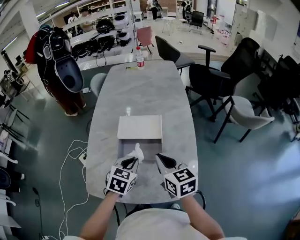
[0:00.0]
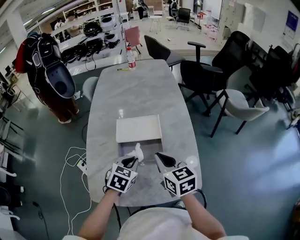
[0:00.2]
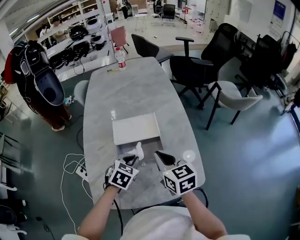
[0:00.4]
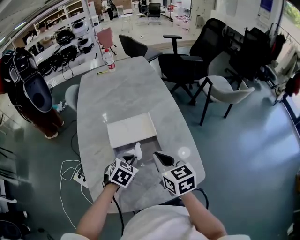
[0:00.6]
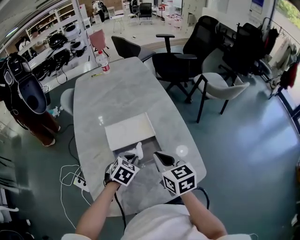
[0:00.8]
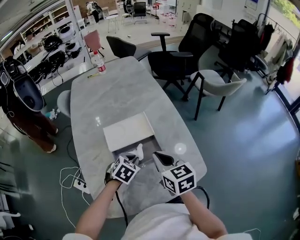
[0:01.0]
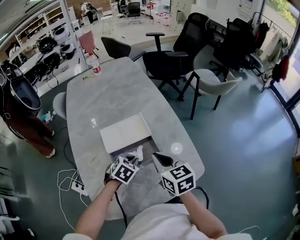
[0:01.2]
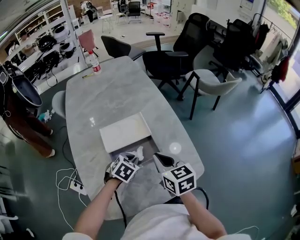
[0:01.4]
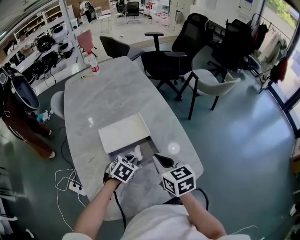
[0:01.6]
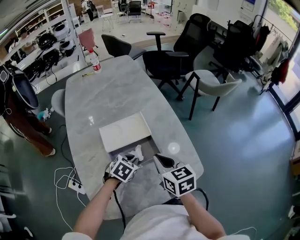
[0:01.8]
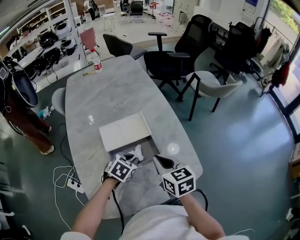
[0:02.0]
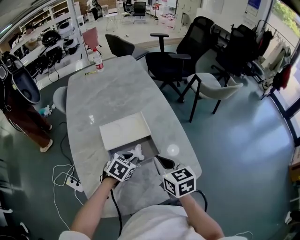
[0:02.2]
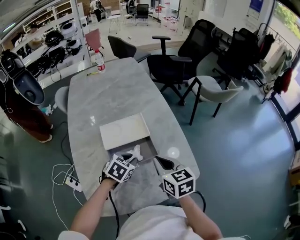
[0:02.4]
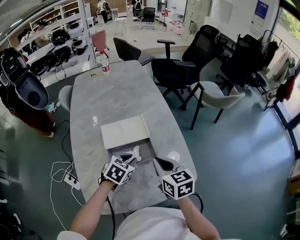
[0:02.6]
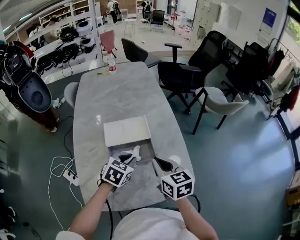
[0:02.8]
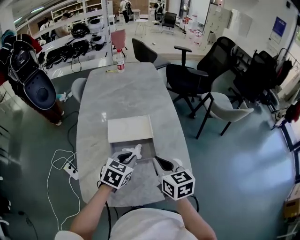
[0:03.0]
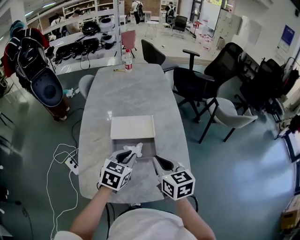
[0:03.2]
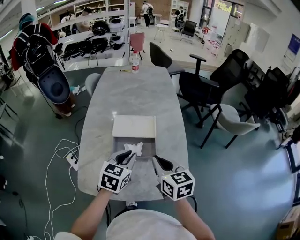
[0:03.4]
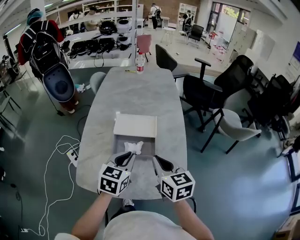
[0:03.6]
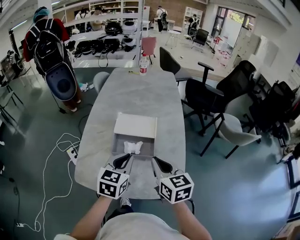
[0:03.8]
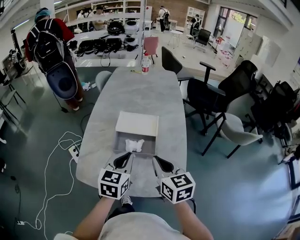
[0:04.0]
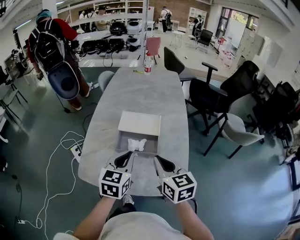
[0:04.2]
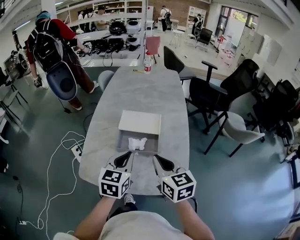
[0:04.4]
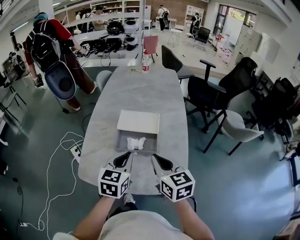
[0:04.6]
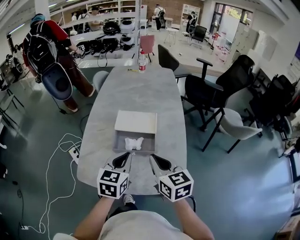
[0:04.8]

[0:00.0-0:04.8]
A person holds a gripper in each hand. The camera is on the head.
0:00.0 to 0:01.6: The right gripper changes its angle by roughly 20 degrees. Meanwhile the left gripper moves downward, about 10 cm, and rotates about 40 degrees.
0:01.6 to 0:03.2: The right gripper moves about 5 cm. The left gripper shifts approximately 15 cm upward, and swivels roughly 40 degrees.
0:03.2 to 0:04.8: The left gripper heads backward, covering roughly 5 cm, and turns by about 20 degrees. Meanwhile the right gripper moves roughly 5 cm.

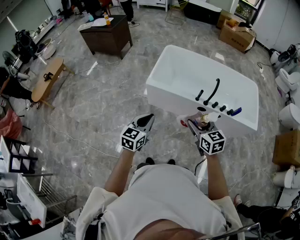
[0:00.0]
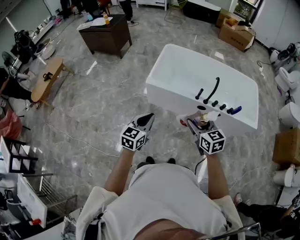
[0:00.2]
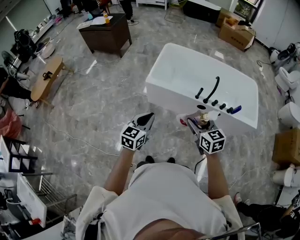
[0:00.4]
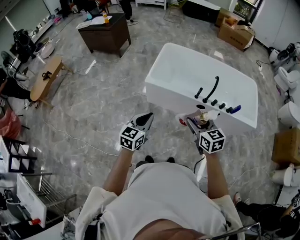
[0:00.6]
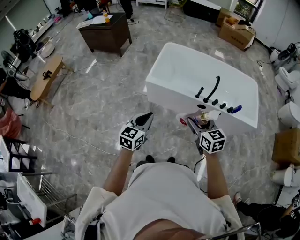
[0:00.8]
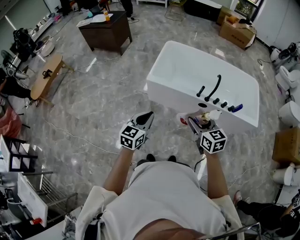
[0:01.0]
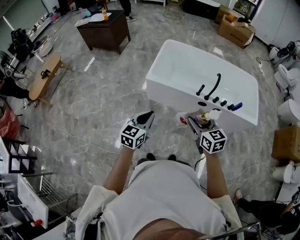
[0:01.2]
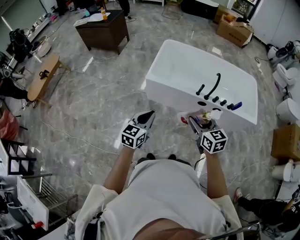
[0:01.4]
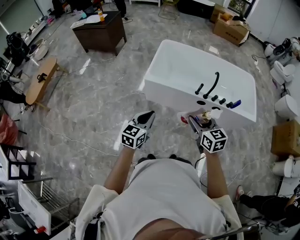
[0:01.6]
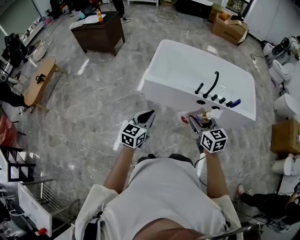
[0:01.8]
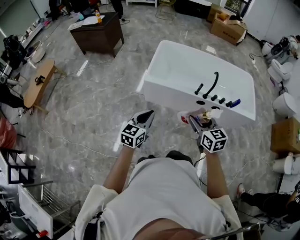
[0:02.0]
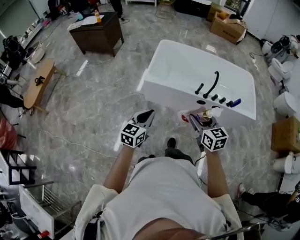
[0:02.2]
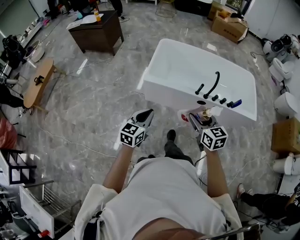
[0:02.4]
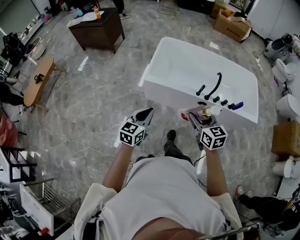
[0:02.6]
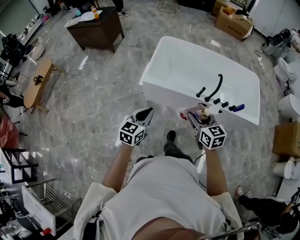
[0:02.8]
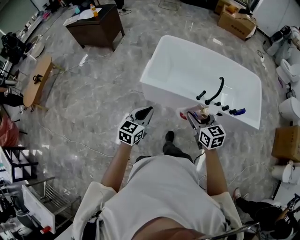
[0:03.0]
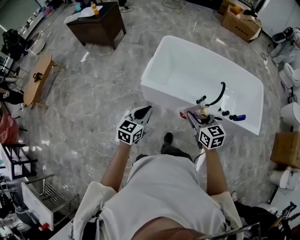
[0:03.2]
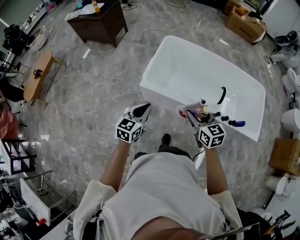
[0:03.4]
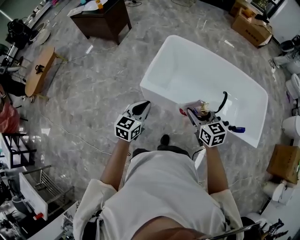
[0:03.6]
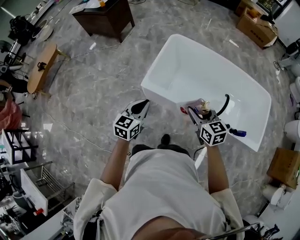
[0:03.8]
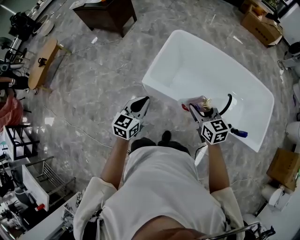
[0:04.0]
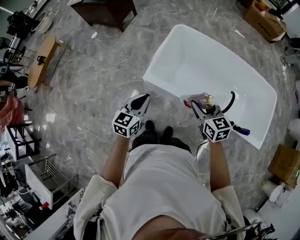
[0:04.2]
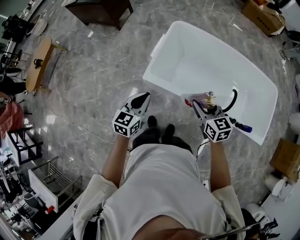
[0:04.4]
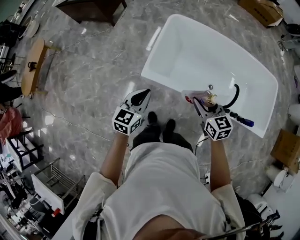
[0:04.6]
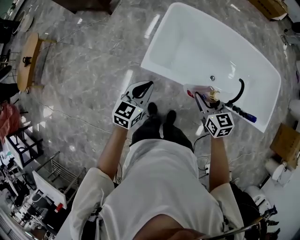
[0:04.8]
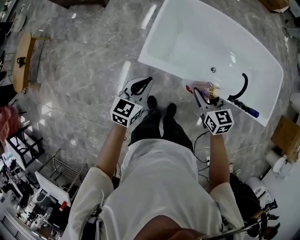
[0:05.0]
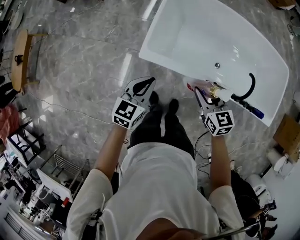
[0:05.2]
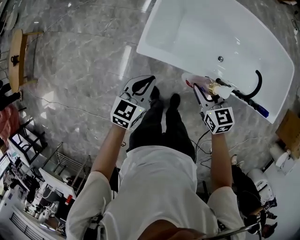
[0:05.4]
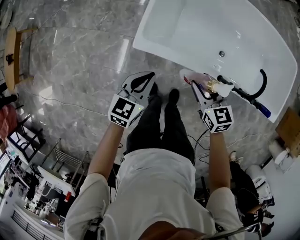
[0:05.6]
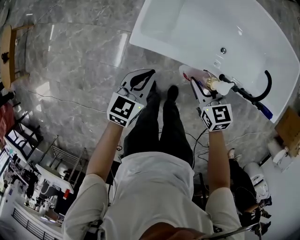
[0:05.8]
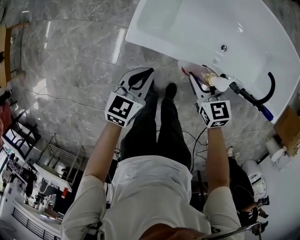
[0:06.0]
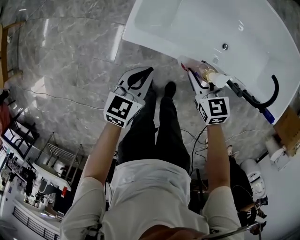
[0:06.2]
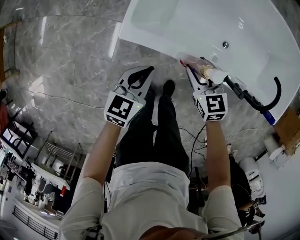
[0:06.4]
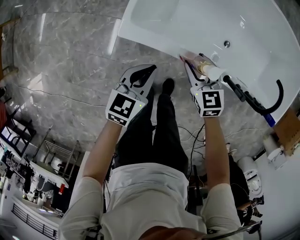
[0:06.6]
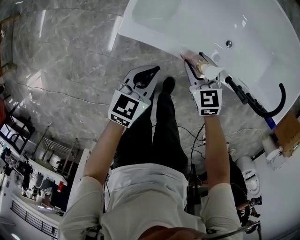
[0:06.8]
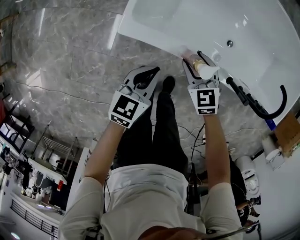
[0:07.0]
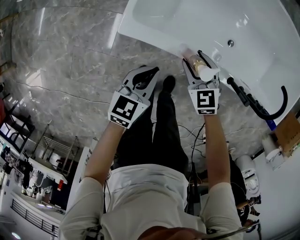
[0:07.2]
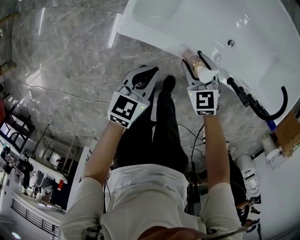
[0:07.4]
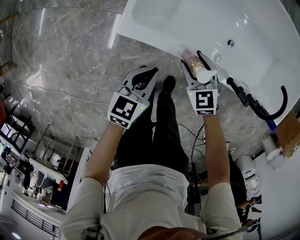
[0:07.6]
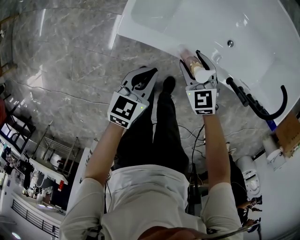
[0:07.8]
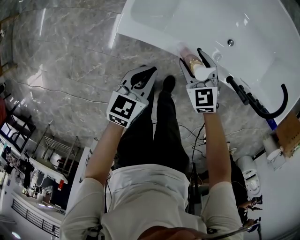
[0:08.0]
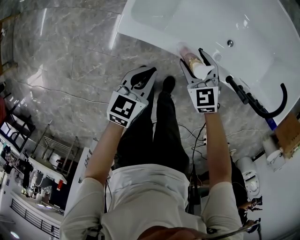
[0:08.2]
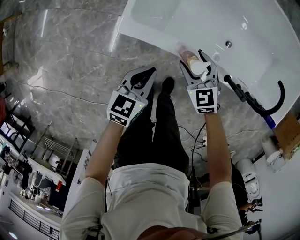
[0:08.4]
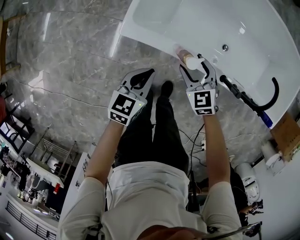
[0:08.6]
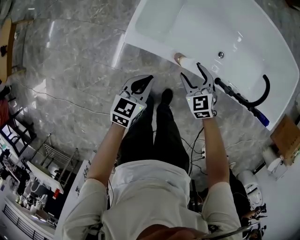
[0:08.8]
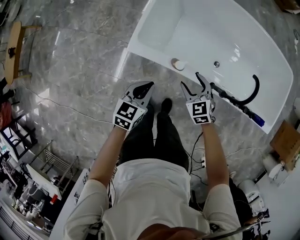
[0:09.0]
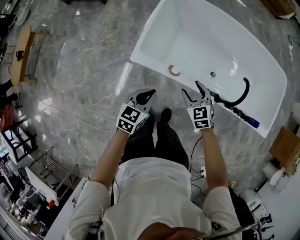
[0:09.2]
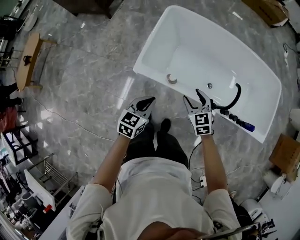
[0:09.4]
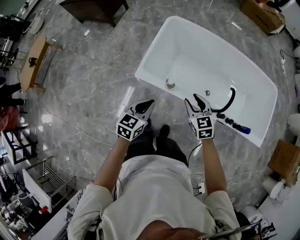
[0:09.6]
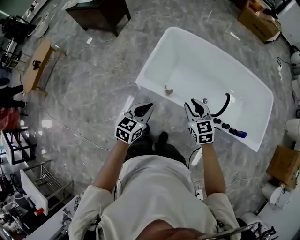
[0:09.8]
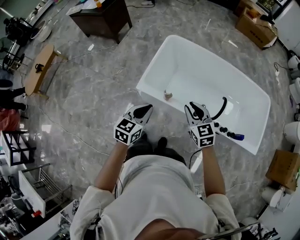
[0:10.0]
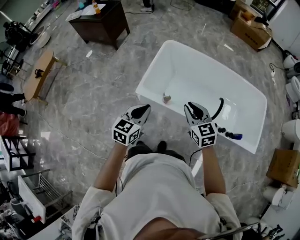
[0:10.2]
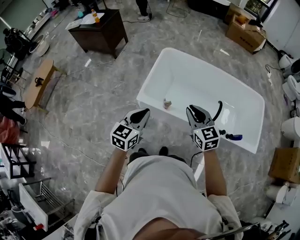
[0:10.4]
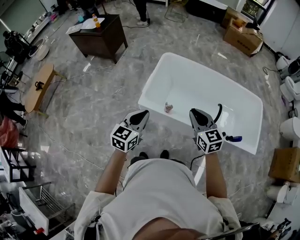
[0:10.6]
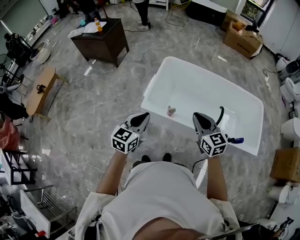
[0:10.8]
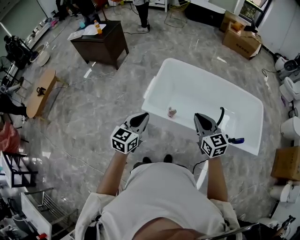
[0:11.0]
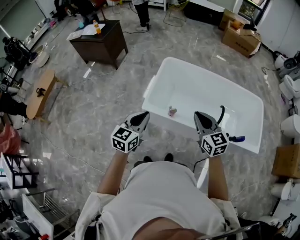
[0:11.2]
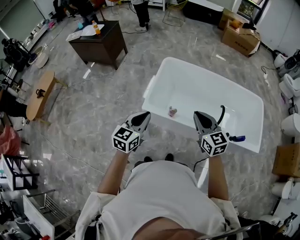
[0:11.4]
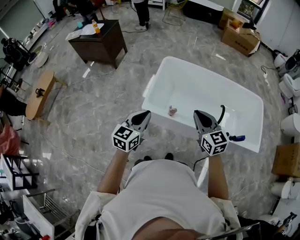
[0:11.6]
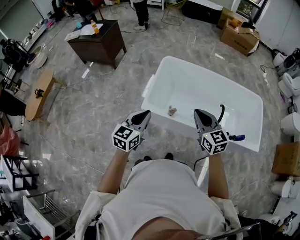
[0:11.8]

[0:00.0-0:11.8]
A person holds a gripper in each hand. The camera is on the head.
0:00.0 to 0:01.4: There are only small adjustments of the grippers.
0:01.4 to 0:03.0: Both grippers move forward, about 20 cm.
0:03.0 to 0:04.4: Both grippers move forward, about 25 cm.
0:04.4 to 0:06.0: The left gripper is displaced downward and forward by roughly 35 cm. The right gripper is displaced downward by some 30 cm.
0:06.0 to 0:07.4: Both grippers travel together downward, some 10 cm.
0:07.4 to 0:08.8: The left gripper goes approximately 10 cm upward, while the right gripper heads upward and backward, covering some 10 cm.
0:08.8 to 0:10.4: The two grippers go approximately 40 cm upward. The right gripper swivels about 30 degrees, and closes. Meanwhile the left gripper turns by some 20 degrees.
0:10.4 to 0:11.8: The right gripper is displaced upward by approximately 5 cm, while the left gripper is displaced to the left by approximately 5 cm.

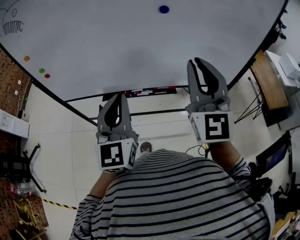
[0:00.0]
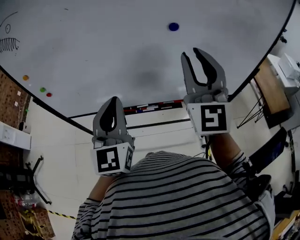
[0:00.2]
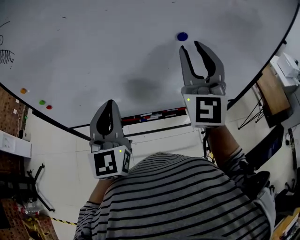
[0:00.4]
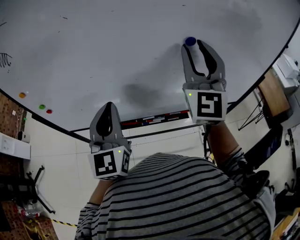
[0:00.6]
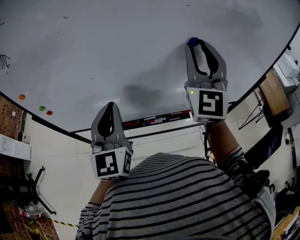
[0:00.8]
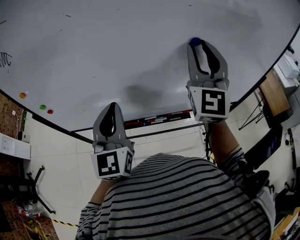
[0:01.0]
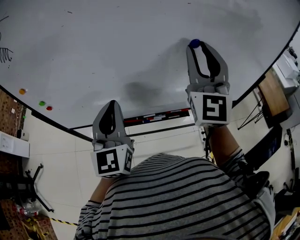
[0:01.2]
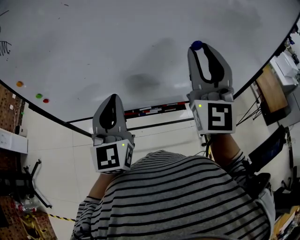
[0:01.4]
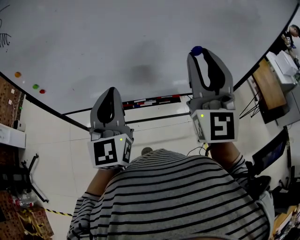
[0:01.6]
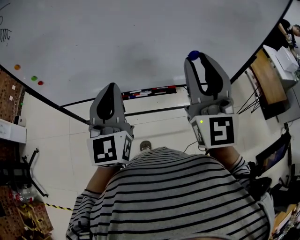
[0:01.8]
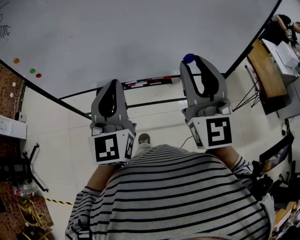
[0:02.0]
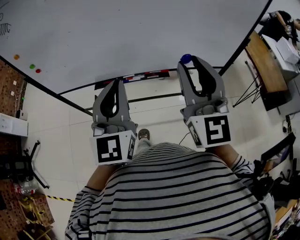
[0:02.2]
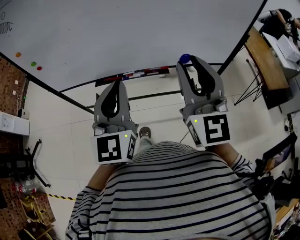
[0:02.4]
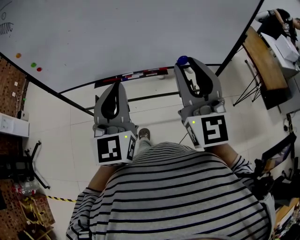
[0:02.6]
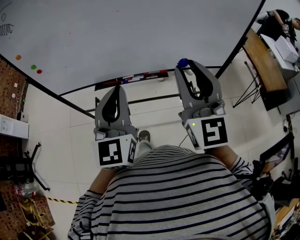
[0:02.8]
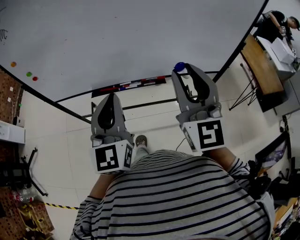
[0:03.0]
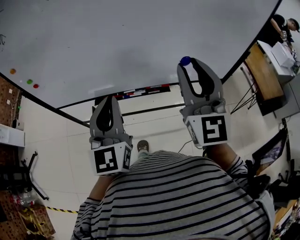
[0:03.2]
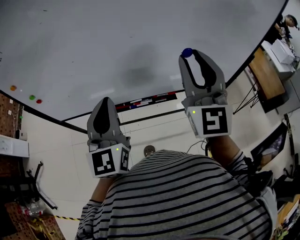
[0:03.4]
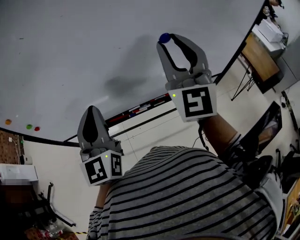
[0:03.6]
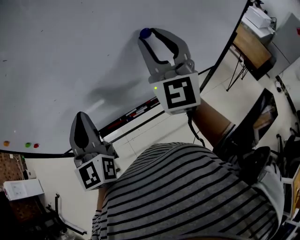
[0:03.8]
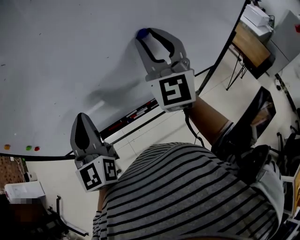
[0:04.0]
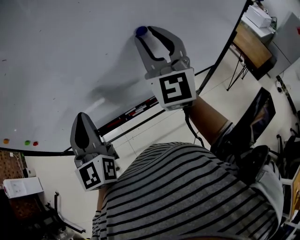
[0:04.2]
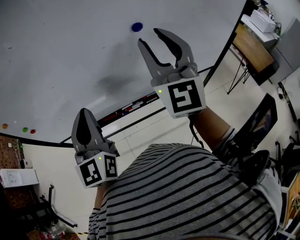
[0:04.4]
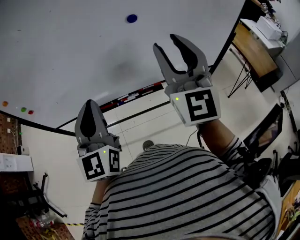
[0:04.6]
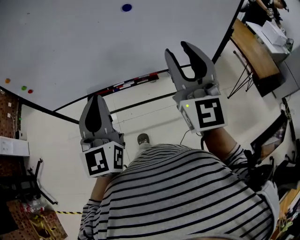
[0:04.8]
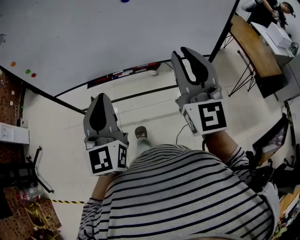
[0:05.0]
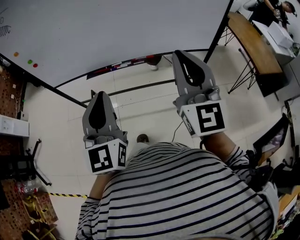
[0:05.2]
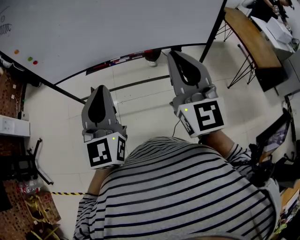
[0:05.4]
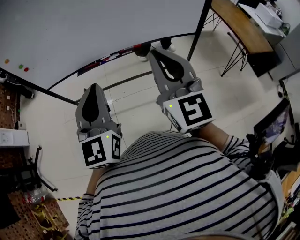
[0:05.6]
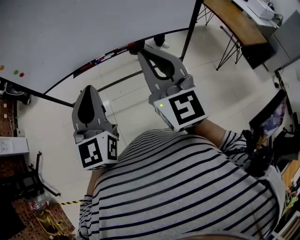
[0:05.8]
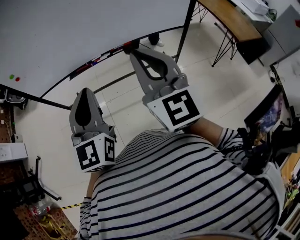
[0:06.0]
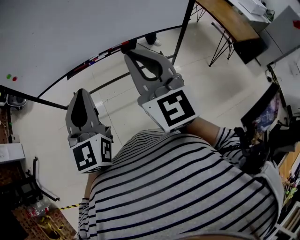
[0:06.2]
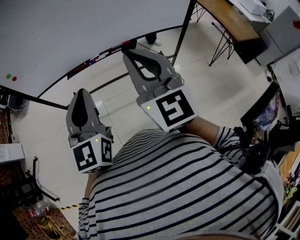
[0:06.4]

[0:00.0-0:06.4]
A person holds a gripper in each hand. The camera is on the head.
0:00.0 to 0:01.6: The right gripper moves some 20 cm forward and comes back. Meanwhile the left gripper shifts roughly 10 cm forward and to the left.
0:01.6 to 0:03.2: Both grippers travel together backward, approximately 5 cm.
0:03.2 to 0:04.8: The left gripper moves about 15 cm forward and comes back. The right gripper moves approximately 15 cm forward and comes back.
0:04.8 to 0:06.4: The left gripper moves backward, roughly 10 cm. The right gripper shifts about 15 cm backward and to the left, and closes up.
